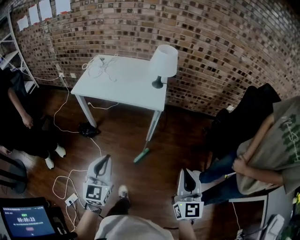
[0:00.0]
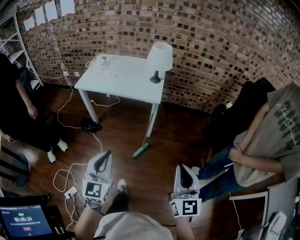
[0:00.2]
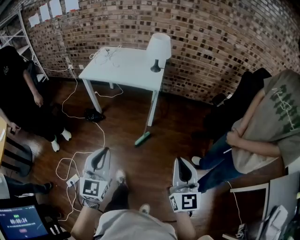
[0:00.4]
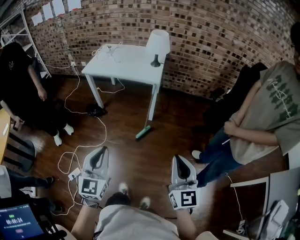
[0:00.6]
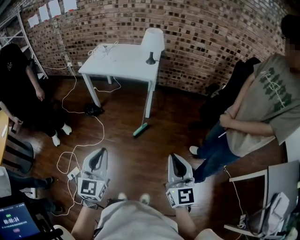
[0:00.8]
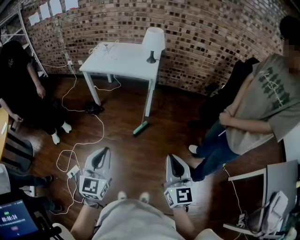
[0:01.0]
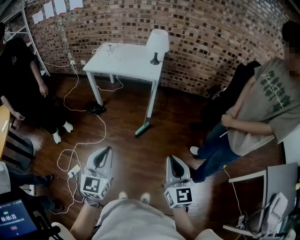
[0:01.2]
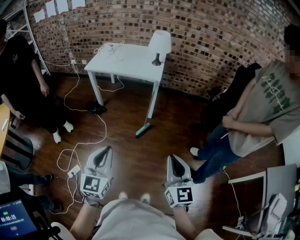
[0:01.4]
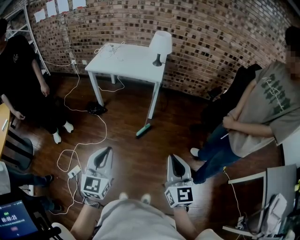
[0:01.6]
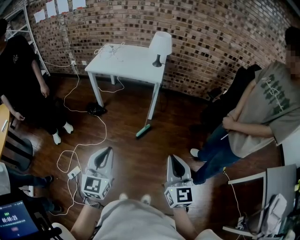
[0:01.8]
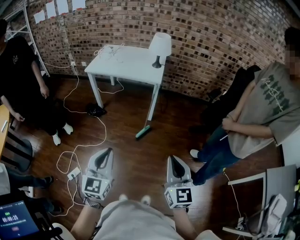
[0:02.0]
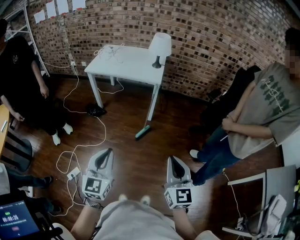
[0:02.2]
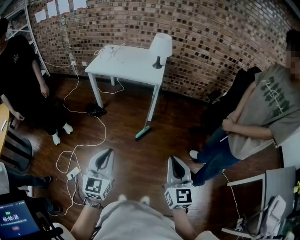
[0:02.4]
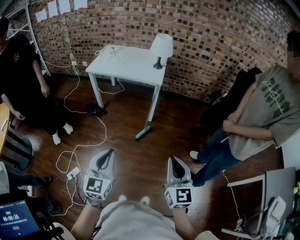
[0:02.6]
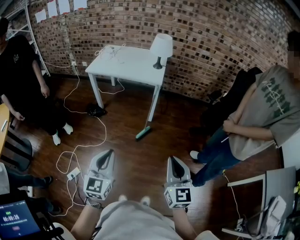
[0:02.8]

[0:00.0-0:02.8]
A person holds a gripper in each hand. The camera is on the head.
0:00.0 to 0:01.4: Both grippers move backward, about 30 cm.
0:01.4 to 0:02.8: The grippers make only small movements.

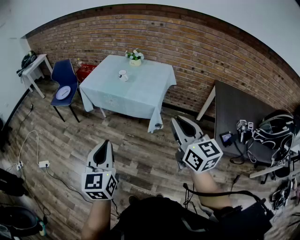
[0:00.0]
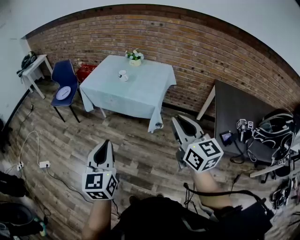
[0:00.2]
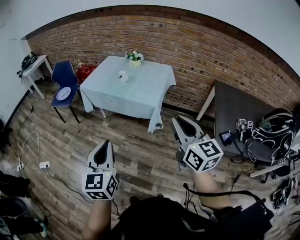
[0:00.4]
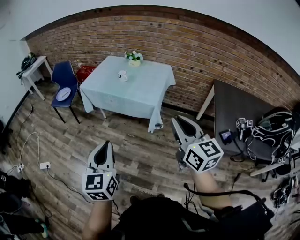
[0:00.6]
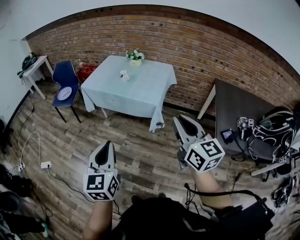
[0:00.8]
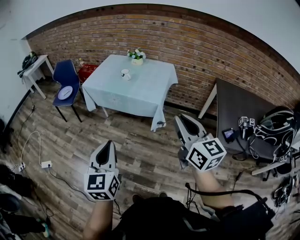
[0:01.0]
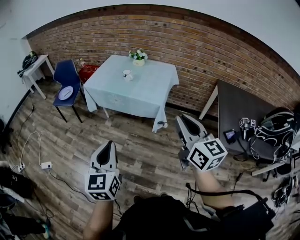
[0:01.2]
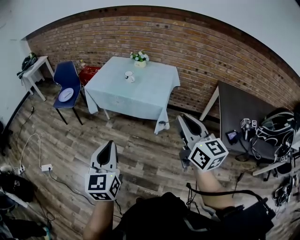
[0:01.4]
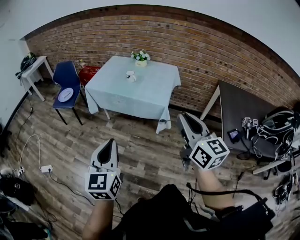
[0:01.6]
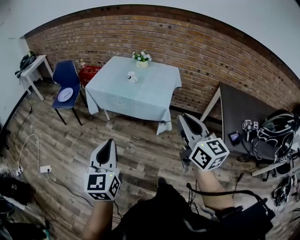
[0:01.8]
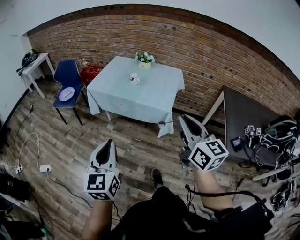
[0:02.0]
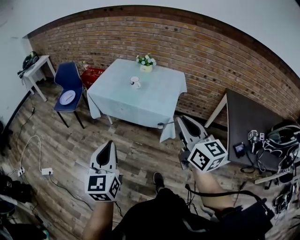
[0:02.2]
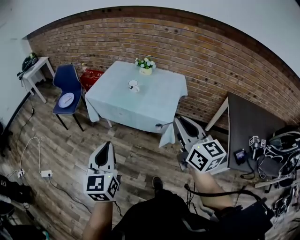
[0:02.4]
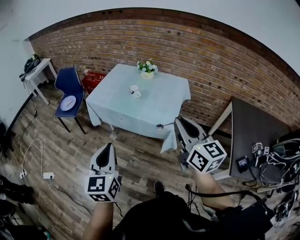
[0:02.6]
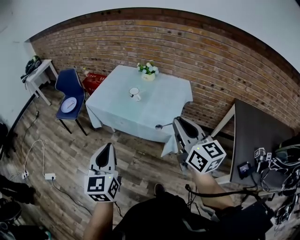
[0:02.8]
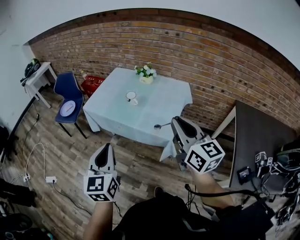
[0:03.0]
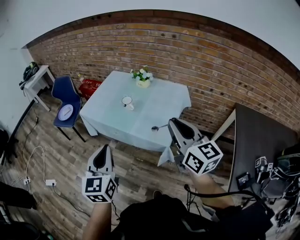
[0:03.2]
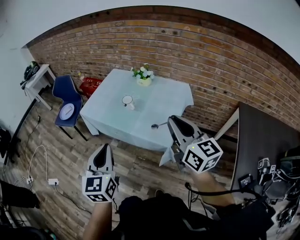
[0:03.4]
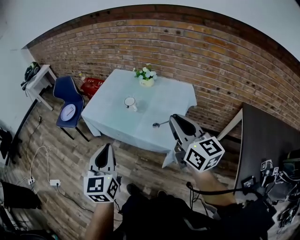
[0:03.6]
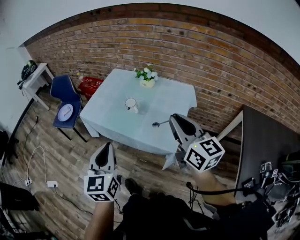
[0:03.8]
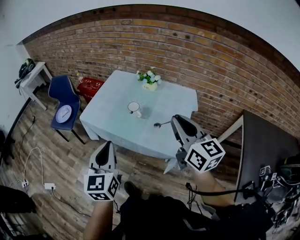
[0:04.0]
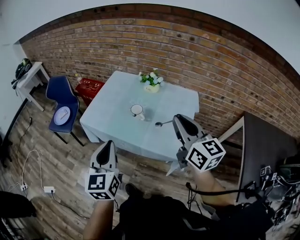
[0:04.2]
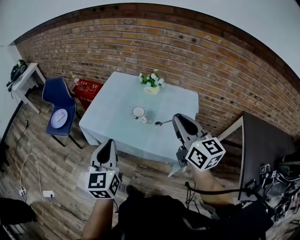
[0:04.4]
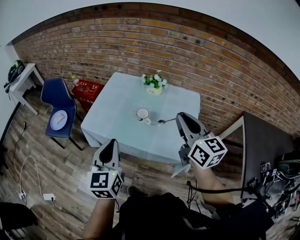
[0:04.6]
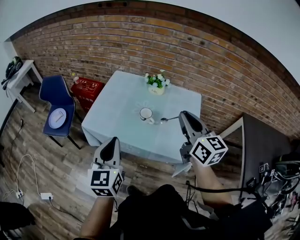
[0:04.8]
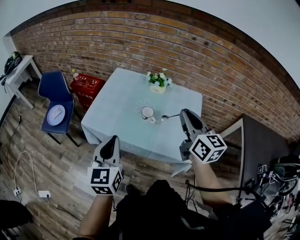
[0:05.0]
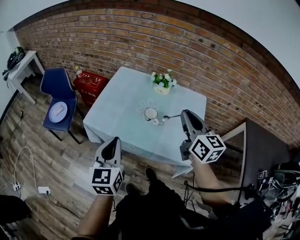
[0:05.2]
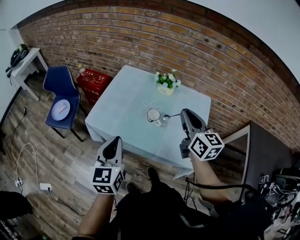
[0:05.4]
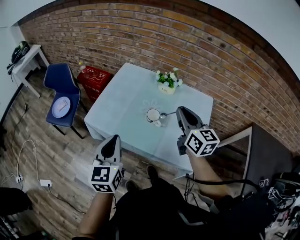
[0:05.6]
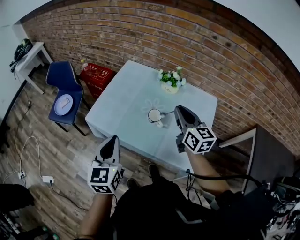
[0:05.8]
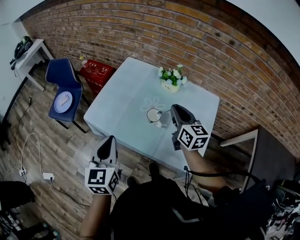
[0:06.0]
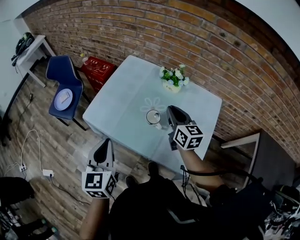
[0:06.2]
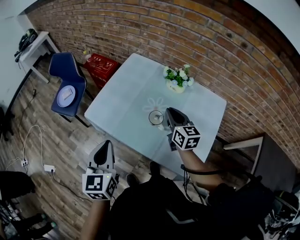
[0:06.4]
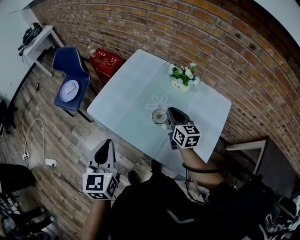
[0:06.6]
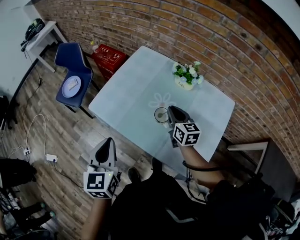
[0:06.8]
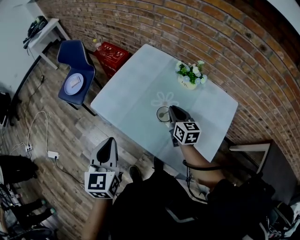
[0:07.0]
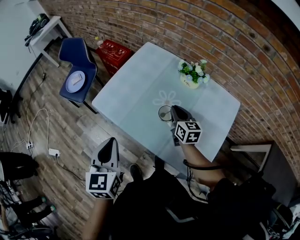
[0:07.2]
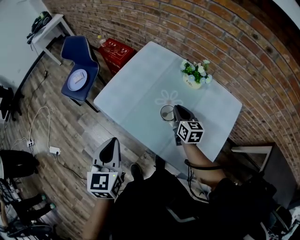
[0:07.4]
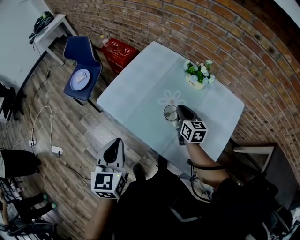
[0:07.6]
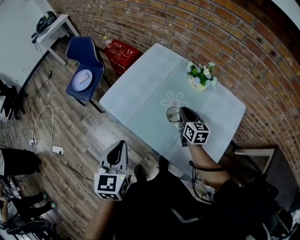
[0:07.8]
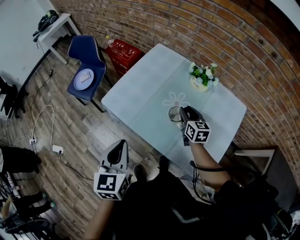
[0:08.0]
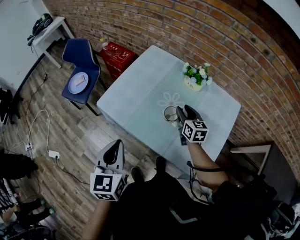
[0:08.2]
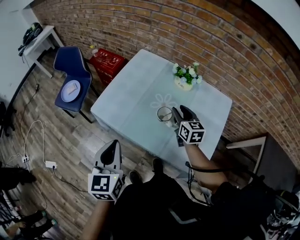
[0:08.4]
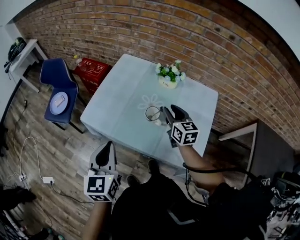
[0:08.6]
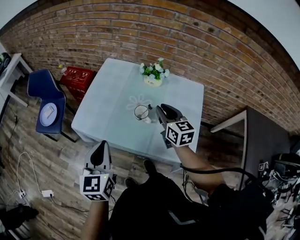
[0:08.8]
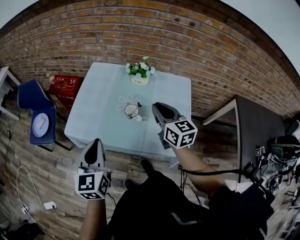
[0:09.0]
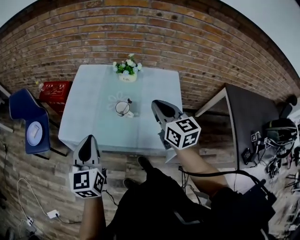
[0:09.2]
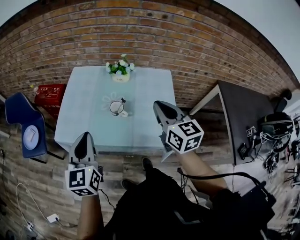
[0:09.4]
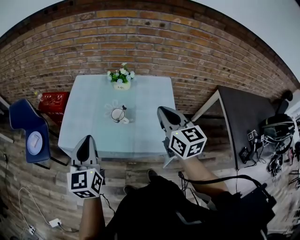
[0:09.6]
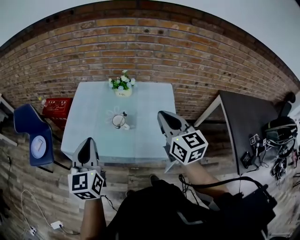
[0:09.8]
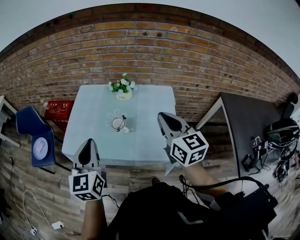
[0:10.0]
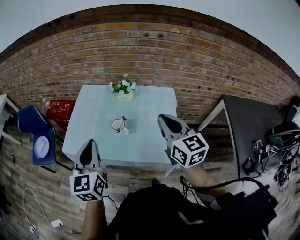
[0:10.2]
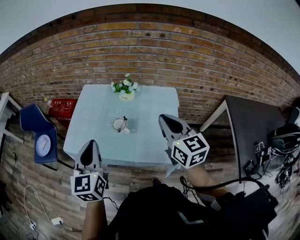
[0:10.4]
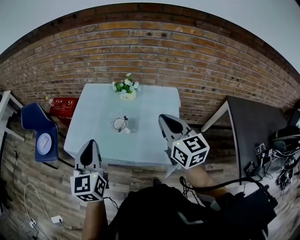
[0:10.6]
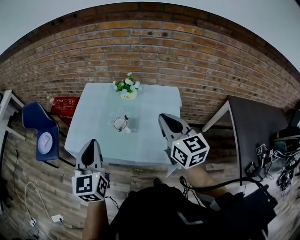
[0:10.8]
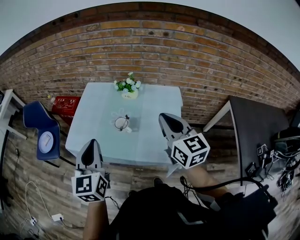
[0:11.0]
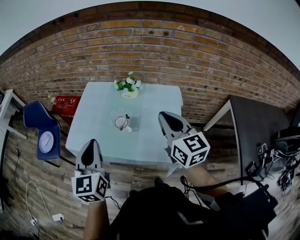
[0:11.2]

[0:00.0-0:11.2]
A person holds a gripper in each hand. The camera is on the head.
0:00.0 to 0:01.6: Both grippers travel together to the left, about 5 cm.
0:01.6 to 0:03.2: Both grippers travel together forward, some 30 cm.
0:03.2 to 0:04.8: The two grippers go about 25 cm forward and to the left.
0:04.8 to 0:06.4: The left gripper is displaced forward and downward by some 10 cm. The right gripper is displaced forward and downward by some 30 cm.
0:06.4 to 0:08.0: The right gripper is displaced downward by some 10 cm, and opens up.
0:08.0 to 0:09.6: The right gripper is displaced upward by roughly 25 cm, turns by about 30 degrees, and closes, while the left gripper is displaced upward by some 5 cm, and turns by about 30 degrees.
0:09.6 to 0:11.2: The left gripper changes place by some 5 cm.

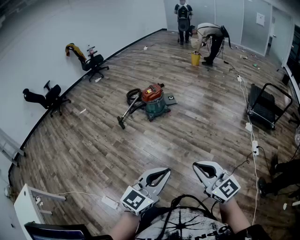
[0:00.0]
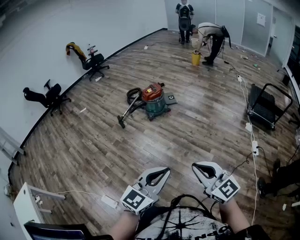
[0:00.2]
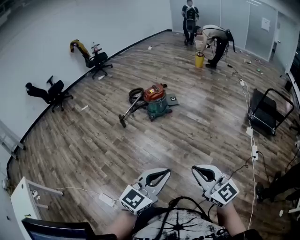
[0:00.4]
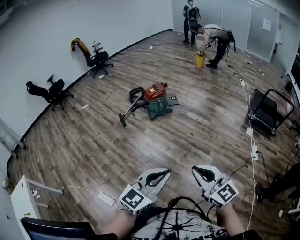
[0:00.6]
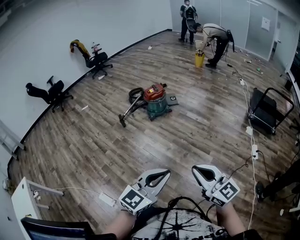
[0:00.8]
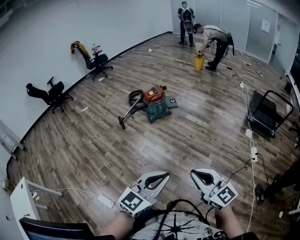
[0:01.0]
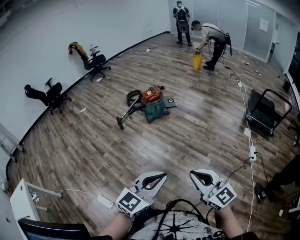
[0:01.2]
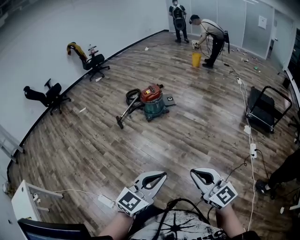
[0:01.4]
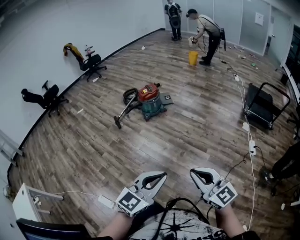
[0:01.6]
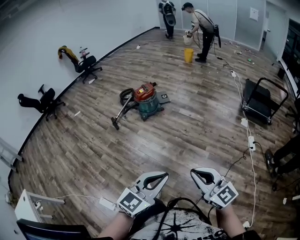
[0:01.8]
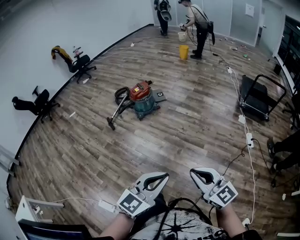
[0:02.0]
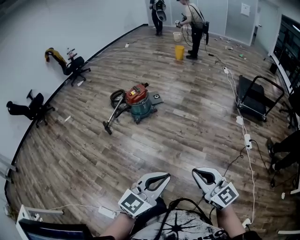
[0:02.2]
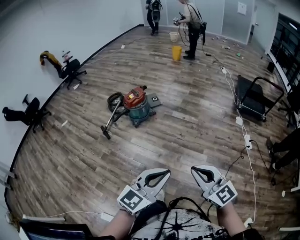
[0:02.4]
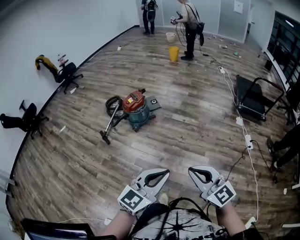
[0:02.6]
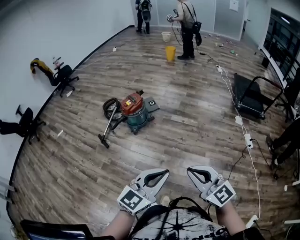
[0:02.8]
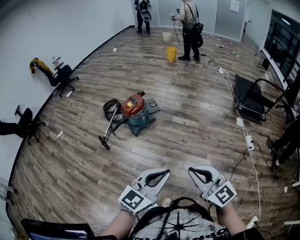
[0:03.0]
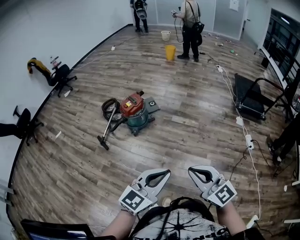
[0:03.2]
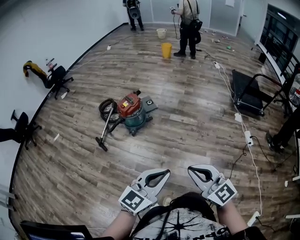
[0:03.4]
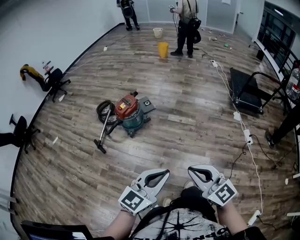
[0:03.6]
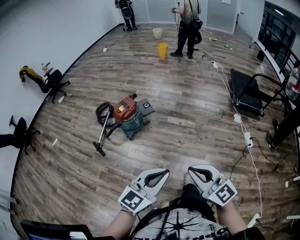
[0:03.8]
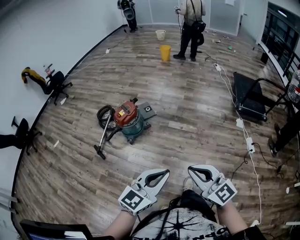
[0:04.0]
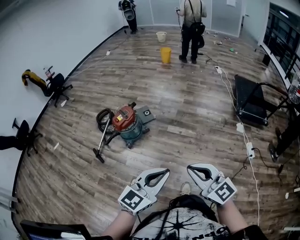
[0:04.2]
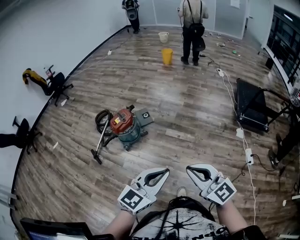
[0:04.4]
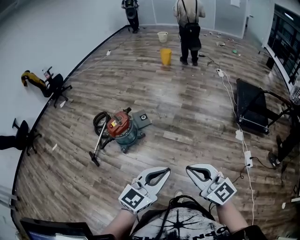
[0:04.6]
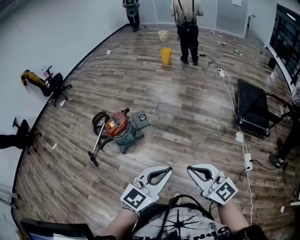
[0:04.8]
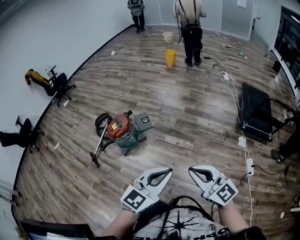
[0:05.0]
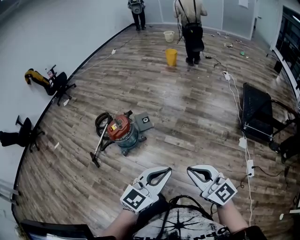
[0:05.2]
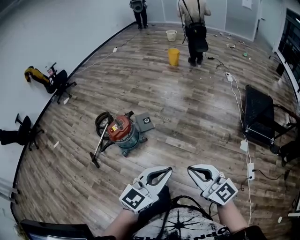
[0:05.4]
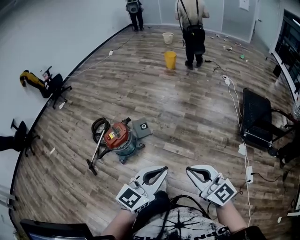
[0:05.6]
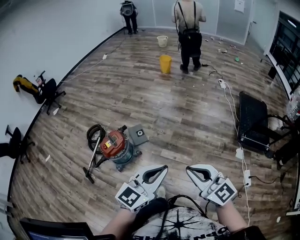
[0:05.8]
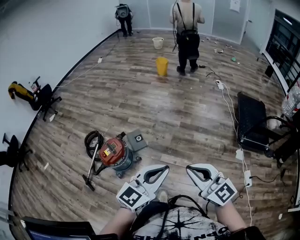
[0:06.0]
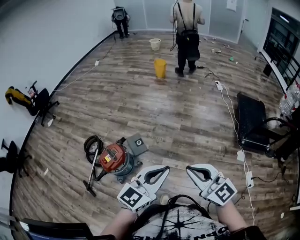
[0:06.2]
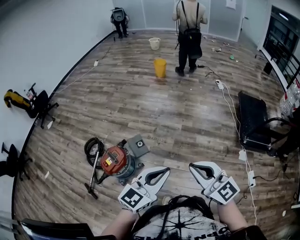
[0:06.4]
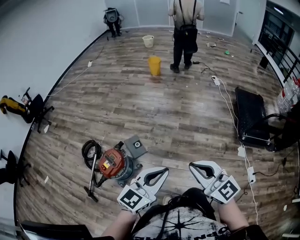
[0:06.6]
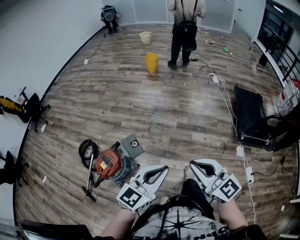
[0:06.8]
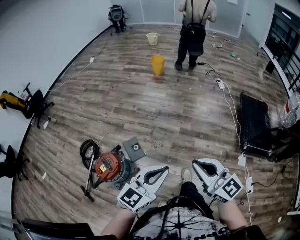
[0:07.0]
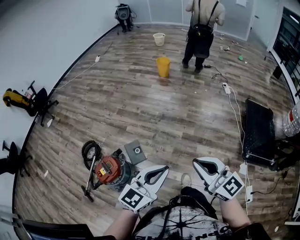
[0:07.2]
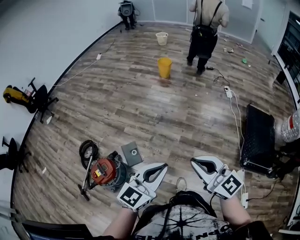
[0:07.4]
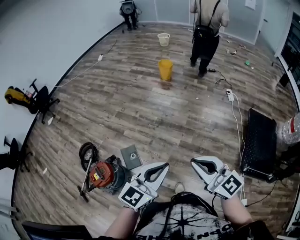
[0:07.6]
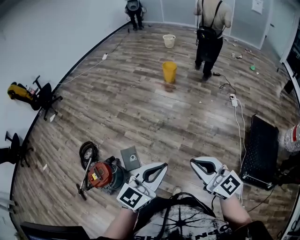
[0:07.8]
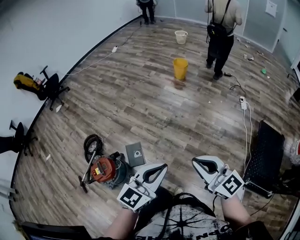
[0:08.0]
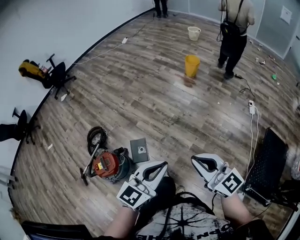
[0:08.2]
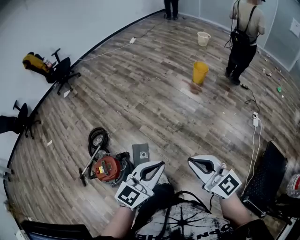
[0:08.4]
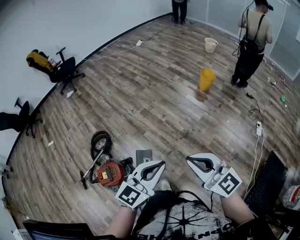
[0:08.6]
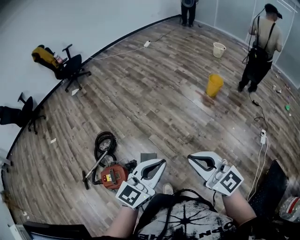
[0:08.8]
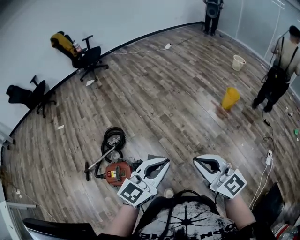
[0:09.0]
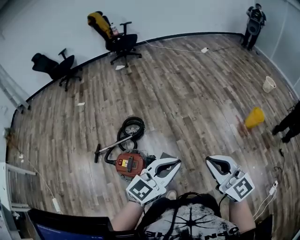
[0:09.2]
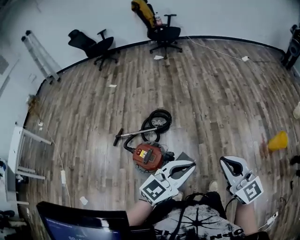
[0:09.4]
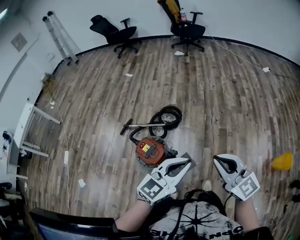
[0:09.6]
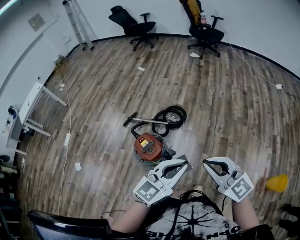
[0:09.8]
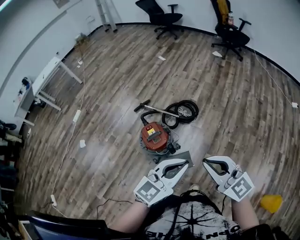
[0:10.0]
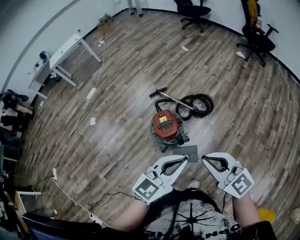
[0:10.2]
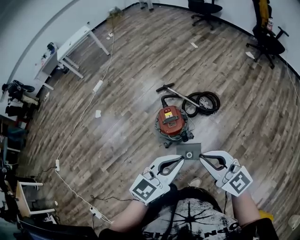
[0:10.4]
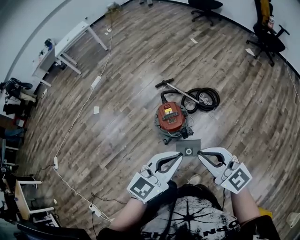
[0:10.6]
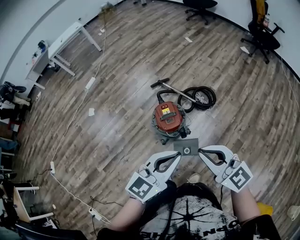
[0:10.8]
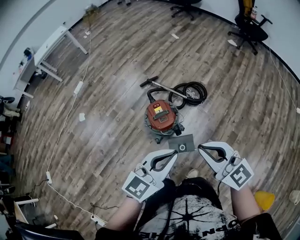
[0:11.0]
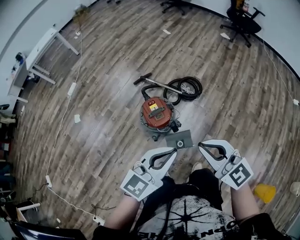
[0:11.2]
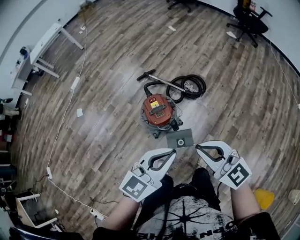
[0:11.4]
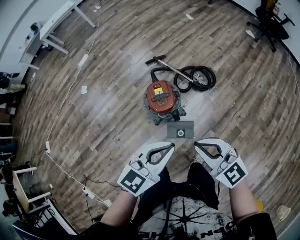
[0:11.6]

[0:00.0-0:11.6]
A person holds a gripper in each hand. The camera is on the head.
0:00.0 to 0:01.4: The grippers move only a little.
0:01.4 to 0:02.8: The left gripper shifts approximately 25 cm forward; the right gripper moves forward and to the left, some 25 cm.
0:02.8 to 0:04.4: Both grippers travel together forward, roughly 25 cm.
0:04.4 to 0:05.8: Both grippers travel together forward, about 30 cm.
0:05.8 to 0:07.2: Both grippers travel together forward, roughly 30 cm.
0:07.2 to 0:08.8: The left gripper moves about 35 cm, and swivels approximately 30 degrees, while the right gripper moves approximately 40 cm, and turns by about 30 degrees.
0:08.8 to 0:10.2: The left gripper moves approximately 20 cm, and turns by about 80 degrees; the right gripper moves approximately 25 cm, and changes its angle by about 80 degrees.
0:10.2 to 0:11.6: The left gripper moves downward, roughly 5 cm, and moves approximately 10 cm to the left and comes back, while the right gripper shifts about 10 cm downward.
